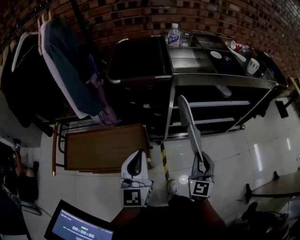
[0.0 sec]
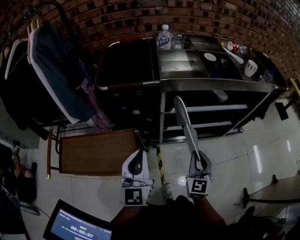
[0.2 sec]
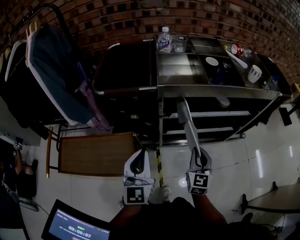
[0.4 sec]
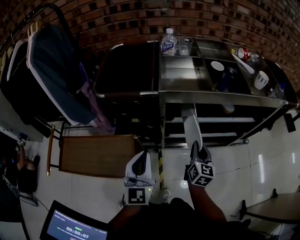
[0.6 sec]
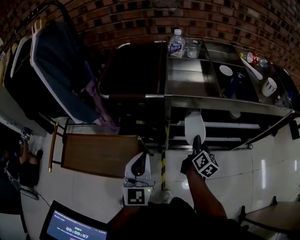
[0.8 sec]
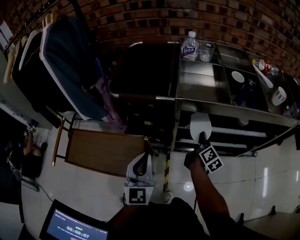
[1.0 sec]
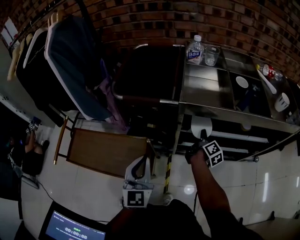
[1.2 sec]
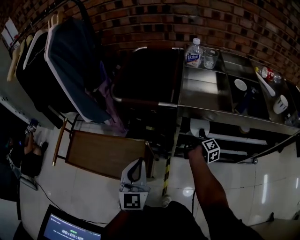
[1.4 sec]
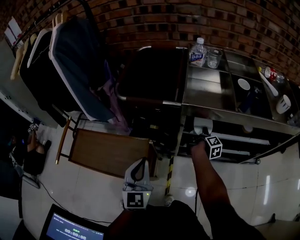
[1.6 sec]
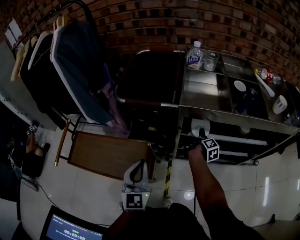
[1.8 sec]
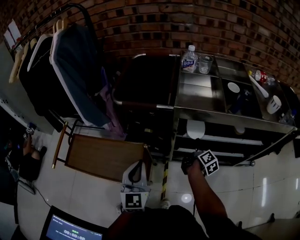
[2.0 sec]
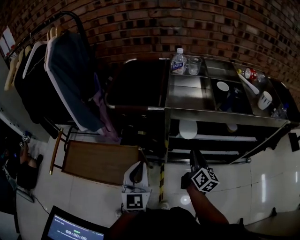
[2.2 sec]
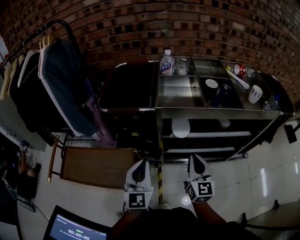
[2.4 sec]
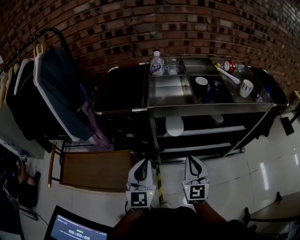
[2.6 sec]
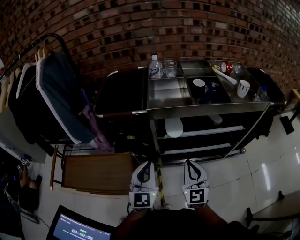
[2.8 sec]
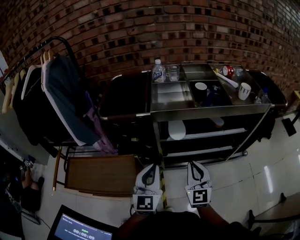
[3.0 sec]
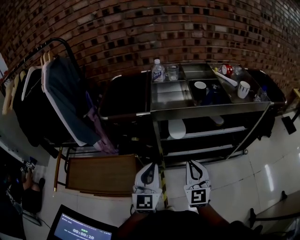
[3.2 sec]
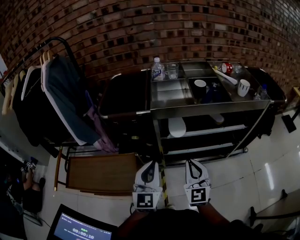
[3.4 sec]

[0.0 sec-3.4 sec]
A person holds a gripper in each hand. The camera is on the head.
0.0 sec to 1.6 sec: The right gripper heads forward and downward, covering roughly 40 cm, and rotates around the line of its fingers by some 100 degrees, clockwise from behind; the left gripper heads forward, covering roughly 10 cm.
1.6 sec to 3.4 sec: The right gripper moves backward and upward, some 35 cm, twists roughly 100 degrees counterclockwise, seen from behind, and closes, while the left gripper heads to the right and upward, covering roughly 10 cm.

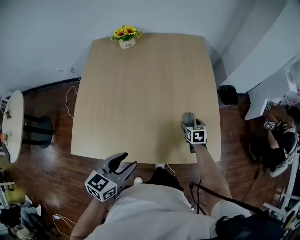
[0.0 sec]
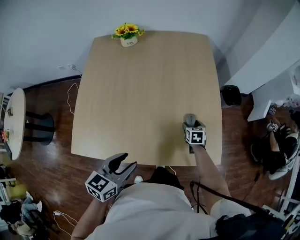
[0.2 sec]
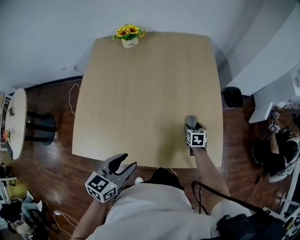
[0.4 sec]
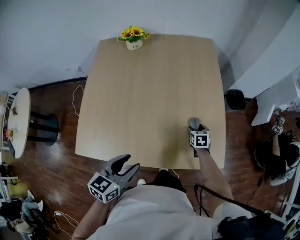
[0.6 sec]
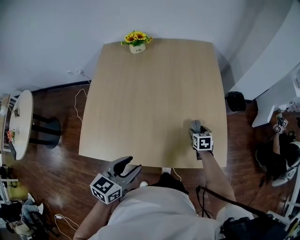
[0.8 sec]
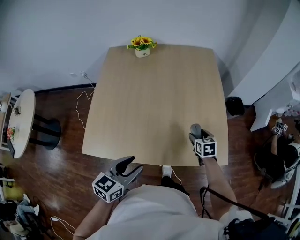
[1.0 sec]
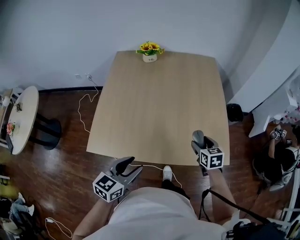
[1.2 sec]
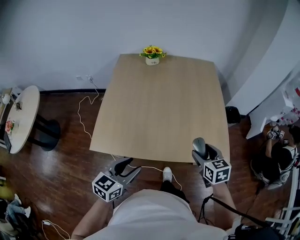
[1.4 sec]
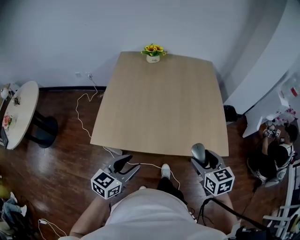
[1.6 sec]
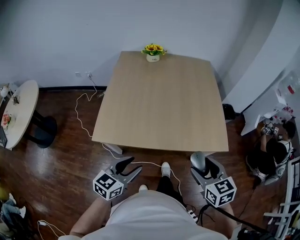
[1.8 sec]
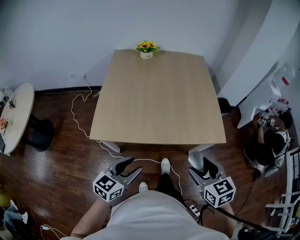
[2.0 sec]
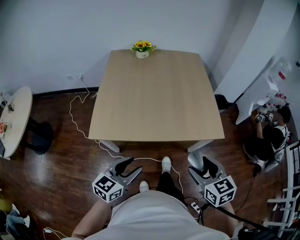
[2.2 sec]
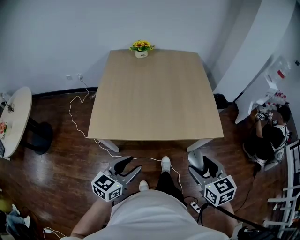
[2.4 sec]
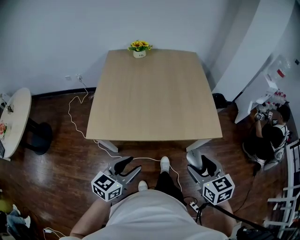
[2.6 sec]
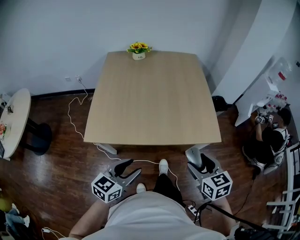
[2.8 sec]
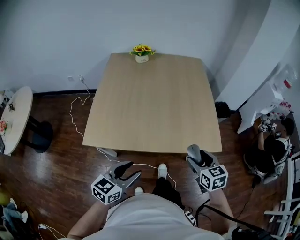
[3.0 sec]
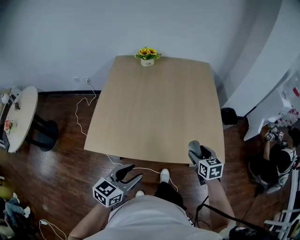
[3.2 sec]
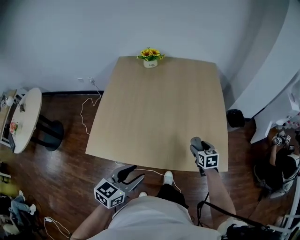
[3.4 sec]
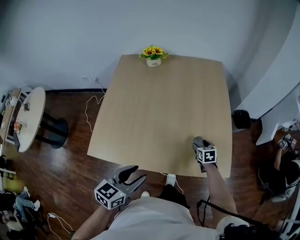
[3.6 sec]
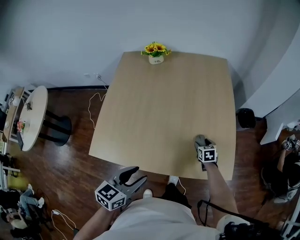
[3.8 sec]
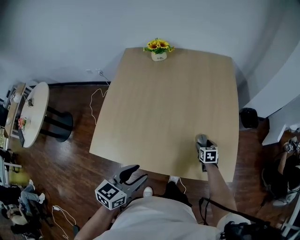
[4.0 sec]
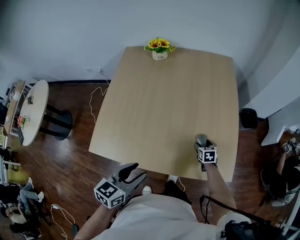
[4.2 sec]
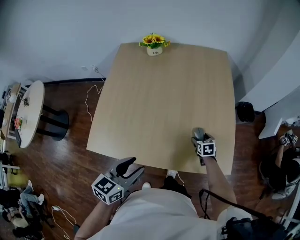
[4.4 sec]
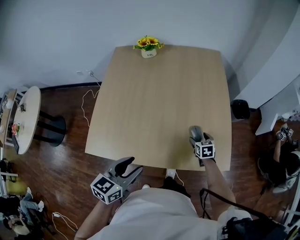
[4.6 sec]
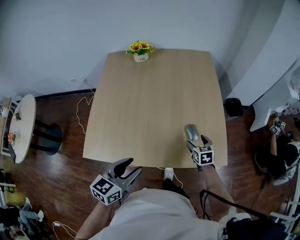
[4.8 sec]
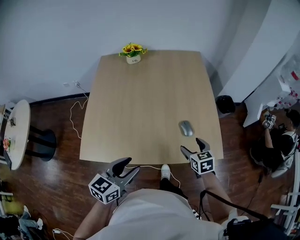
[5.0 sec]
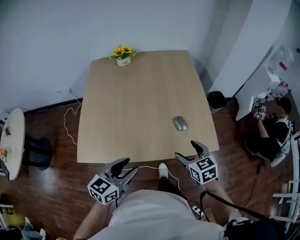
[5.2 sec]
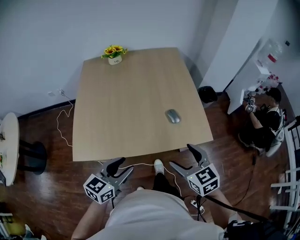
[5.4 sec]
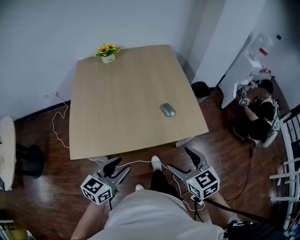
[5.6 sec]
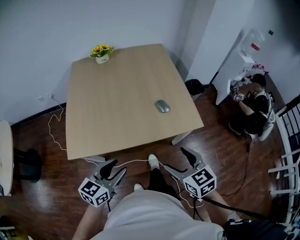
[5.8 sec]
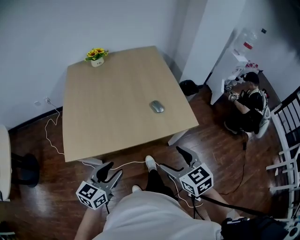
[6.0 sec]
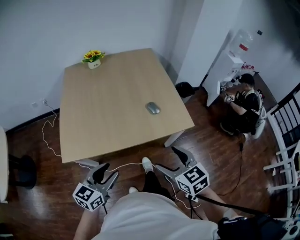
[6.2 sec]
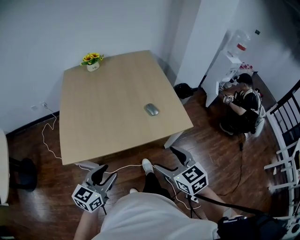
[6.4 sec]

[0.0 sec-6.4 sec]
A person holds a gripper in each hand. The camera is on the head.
0.0 sec to 1.6 sec: The right gripper moves backward and upward, about 40 cm, and turns by about 20 degrees; the left gripper goes some 20 cm backward and to the left.
1.6 sec to 3.2 sec: The left gripper shifts roughly 5 cm to the right, and travels backward and back again, about 10 cm each way; the right gripper moves forward, downward and to the right, about 15 cm.
3.2 sec to 4.8 sec: The right gripper goes about 15 cm forward and downward. Meanwhile the left gripper heads forward, covering about 10 cm.
4.8 sec to 6.4 sec: The left gripper moves backward, about 15 cm. The right gripper moves backward and upward, some 40 cm.

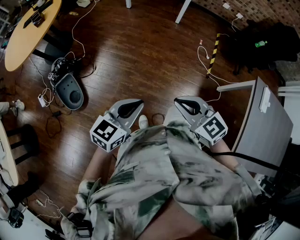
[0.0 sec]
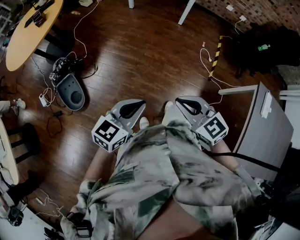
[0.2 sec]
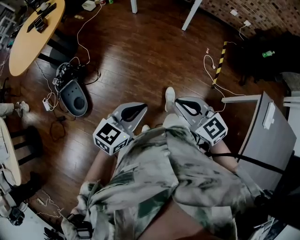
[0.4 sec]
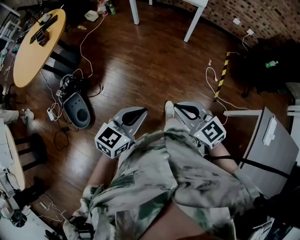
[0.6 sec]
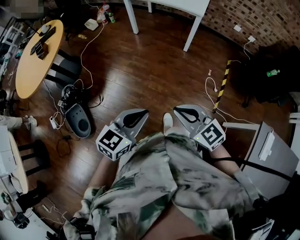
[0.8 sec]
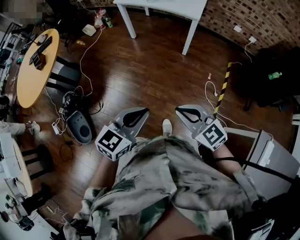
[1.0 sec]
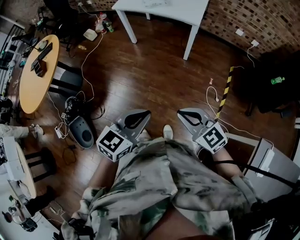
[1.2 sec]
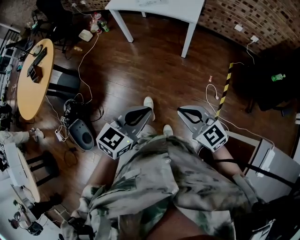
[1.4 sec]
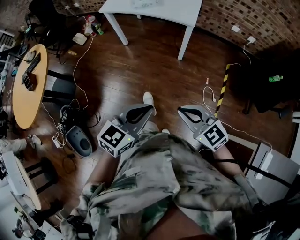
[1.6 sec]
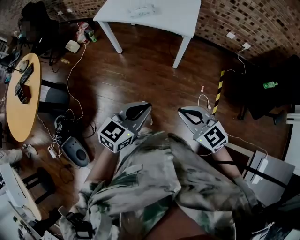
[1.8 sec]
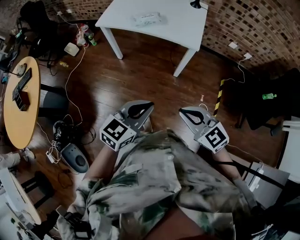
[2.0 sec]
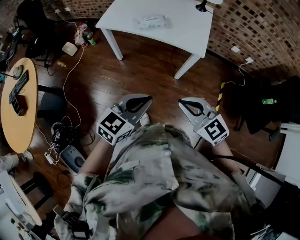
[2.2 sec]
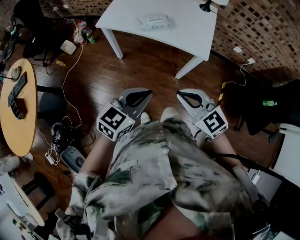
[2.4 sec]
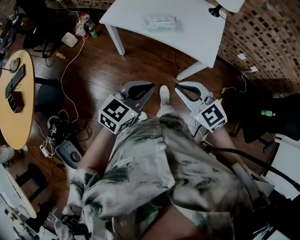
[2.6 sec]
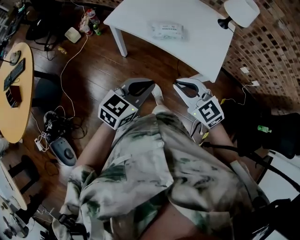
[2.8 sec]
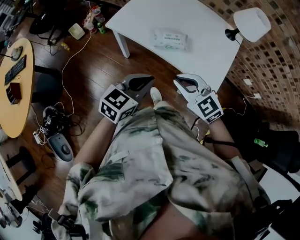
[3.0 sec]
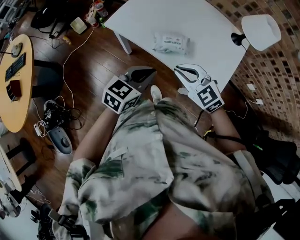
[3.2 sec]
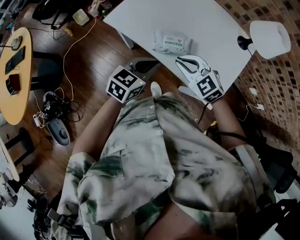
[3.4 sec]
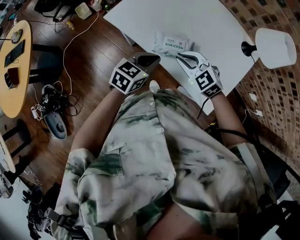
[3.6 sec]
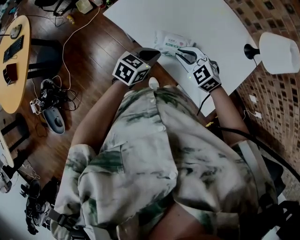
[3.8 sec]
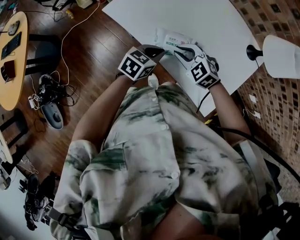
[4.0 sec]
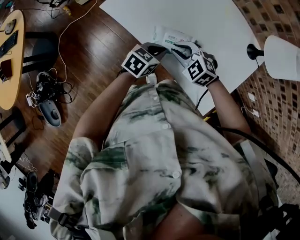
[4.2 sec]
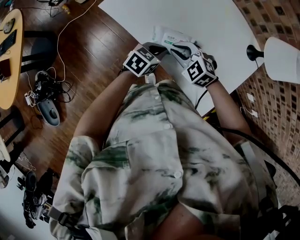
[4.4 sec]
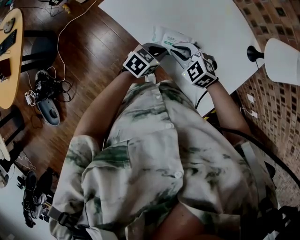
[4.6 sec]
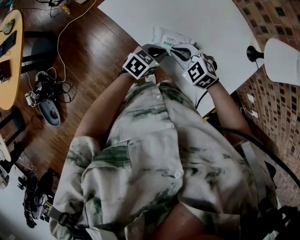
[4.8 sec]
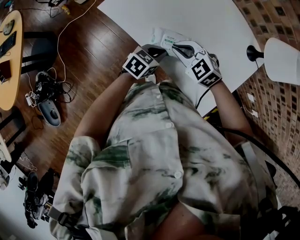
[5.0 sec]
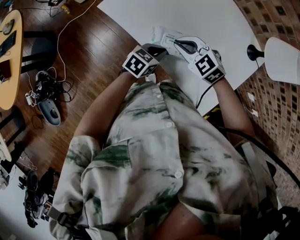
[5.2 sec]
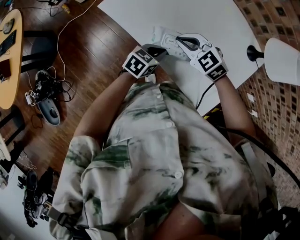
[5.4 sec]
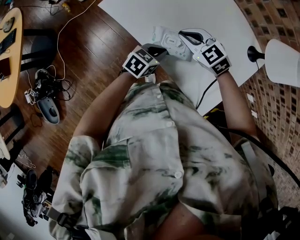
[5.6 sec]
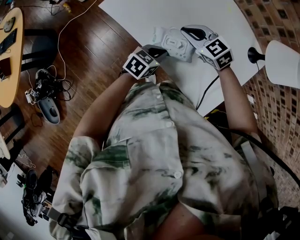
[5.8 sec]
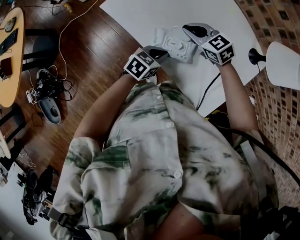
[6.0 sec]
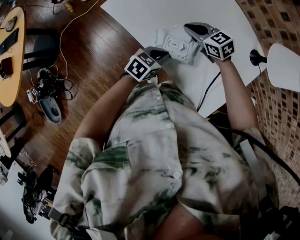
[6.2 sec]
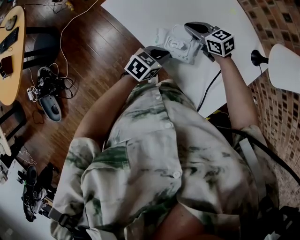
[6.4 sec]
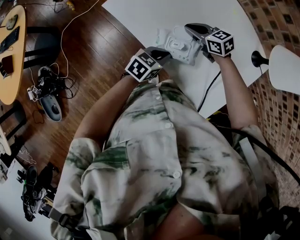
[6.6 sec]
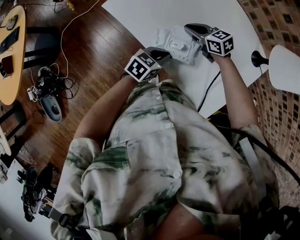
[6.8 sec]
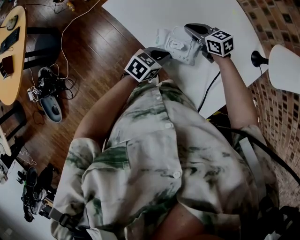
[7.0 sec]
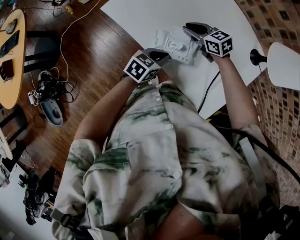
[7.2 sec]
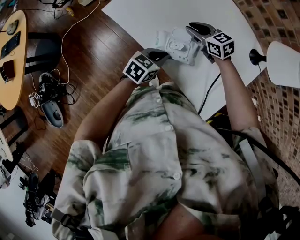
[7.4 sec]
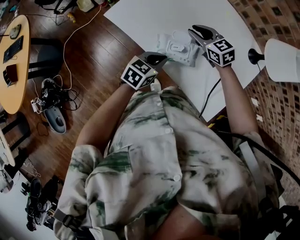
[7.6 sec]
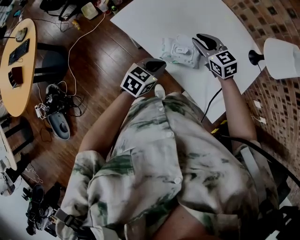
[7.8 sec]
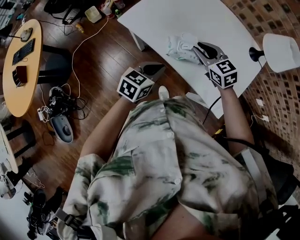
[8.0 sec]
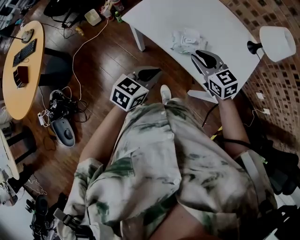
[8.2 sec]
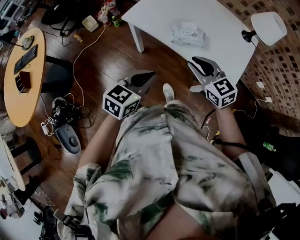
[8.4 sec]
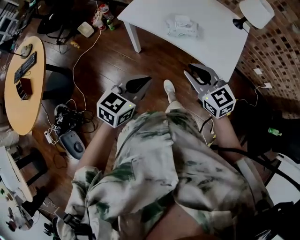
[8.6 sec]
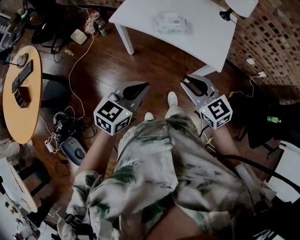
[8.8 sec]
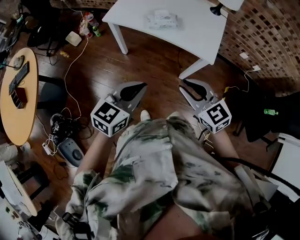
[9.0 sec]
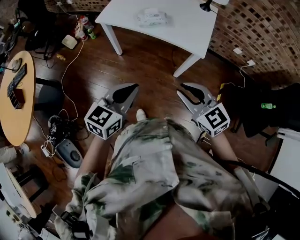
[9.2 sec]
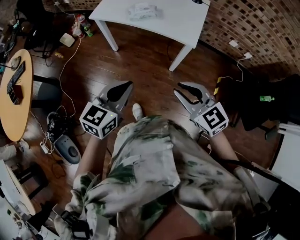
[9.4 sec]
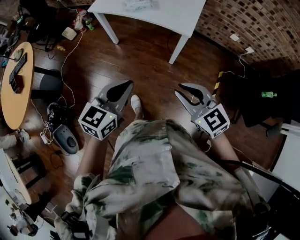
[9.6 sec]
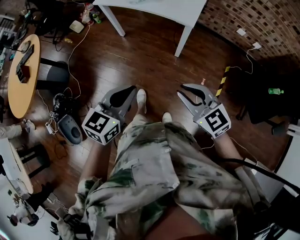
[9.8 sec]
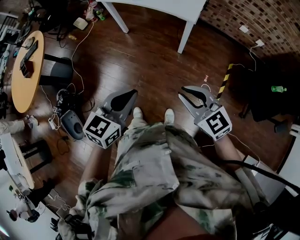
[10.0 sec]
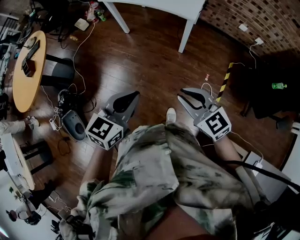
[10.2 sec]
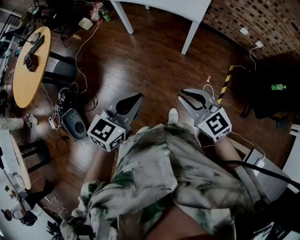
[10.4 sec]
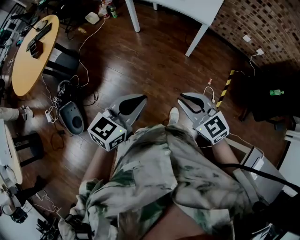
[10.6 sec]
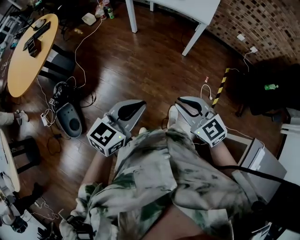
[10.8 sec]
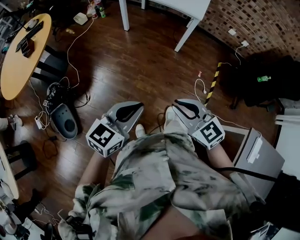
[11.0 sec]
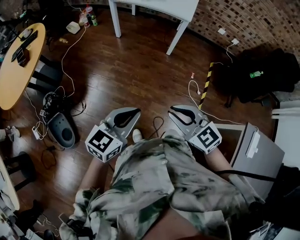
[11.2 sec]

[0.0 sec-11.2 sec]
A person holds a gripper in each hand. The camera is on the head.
0.0 sec to 1.6 sec: The two grippers travel together, forward and to the right, about 50 cm.
1.6 sec to 3.2 sec: Both grippers are carried forward, roughly 60 cm. The right gripper rotates approximately 30 degrees.
3.2 sec to 4.8 sec: The right gripper shifts approximately 20 cm downward and forward, and turns by roughly 20 degrees. Meanwhile the left gripper is displaced downward, forward and to the right by approximately 25 cm.
4.8 sec to 6.4 sec: The right gripper shifts by roughly 15 cm, and rotates some 40 degrees.
6.4 sec to 8.0 sec: The right gripper travels upward by some 10 cm, and changes its angle by roughly 20 degrees. Meanwhile the left gripper shifts by some 15 cm.
8.0 sec to 9.6 sec: The pair of grippers is taken backward, some 50 cm. The left gripper is displaced upward by approximately 20 cm.
9.6 sec to 11.2 sec: The left gripper is displaced backward by about 35 cm. The right gripper goes some 40 cm backward and to the left.

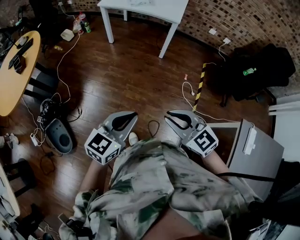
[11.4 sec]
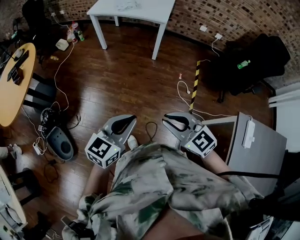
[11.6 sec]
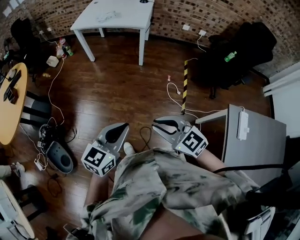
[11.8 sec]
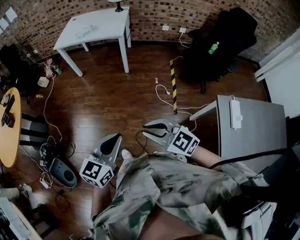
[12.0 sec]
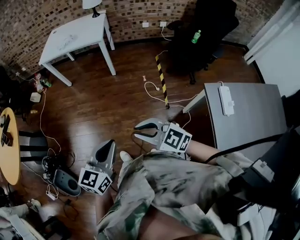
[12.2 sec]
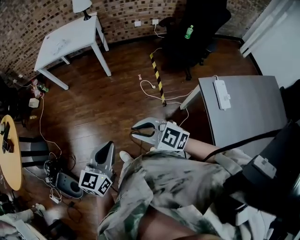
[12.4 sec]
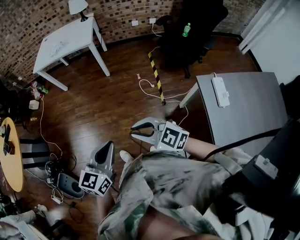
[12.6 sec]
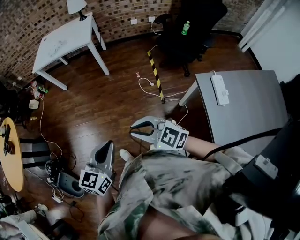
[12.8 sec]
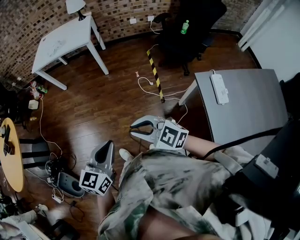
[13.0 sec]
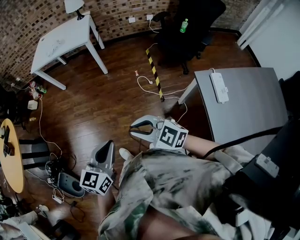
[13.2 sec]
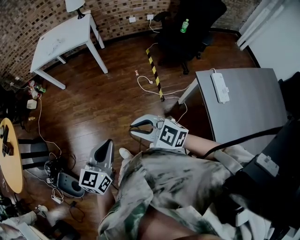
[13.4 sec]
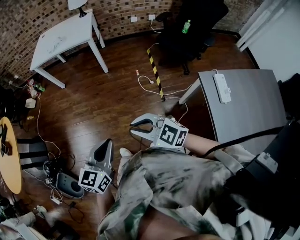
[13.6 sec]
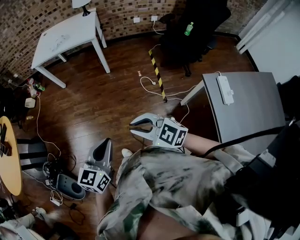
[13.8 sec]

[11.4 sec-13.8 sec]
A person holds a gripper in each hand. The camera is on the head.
11.4 sec to 12.6 sec: The two grippers go approximately 20 cm to the right and backward.
12.6 sec to 13.8 sec: The grippers both shift to the left by roughly 5 cm.
